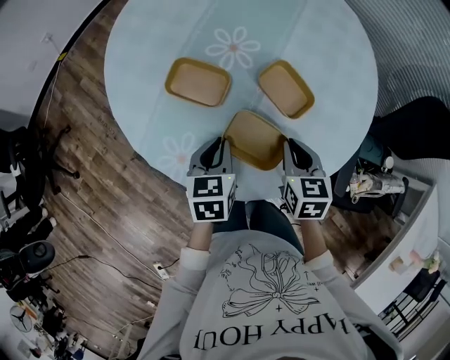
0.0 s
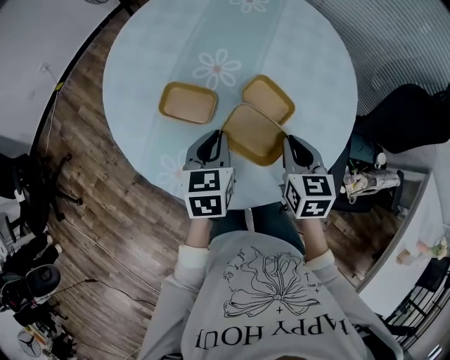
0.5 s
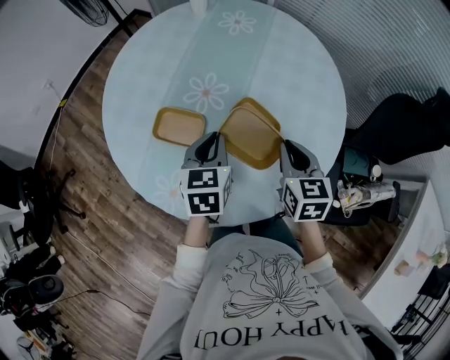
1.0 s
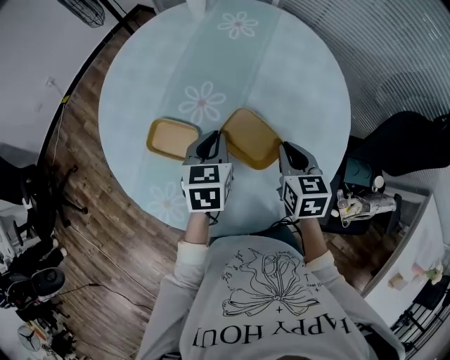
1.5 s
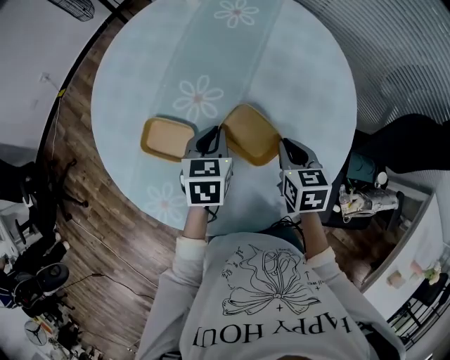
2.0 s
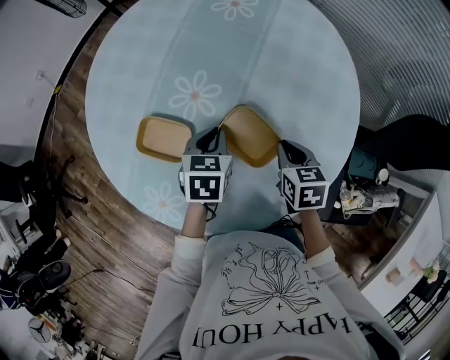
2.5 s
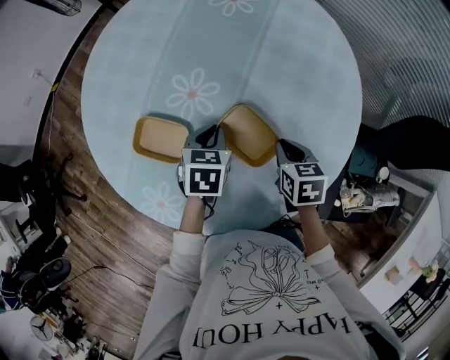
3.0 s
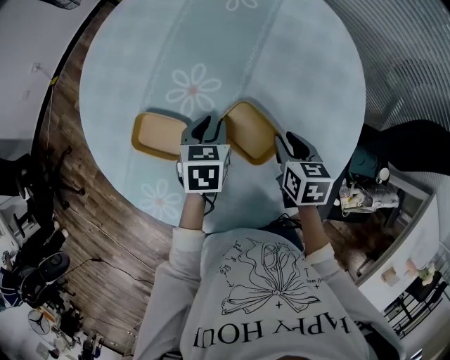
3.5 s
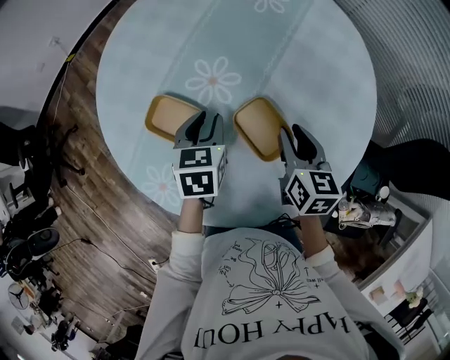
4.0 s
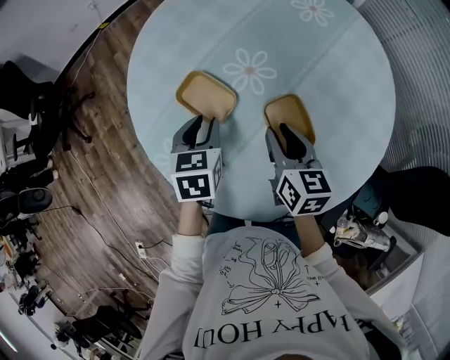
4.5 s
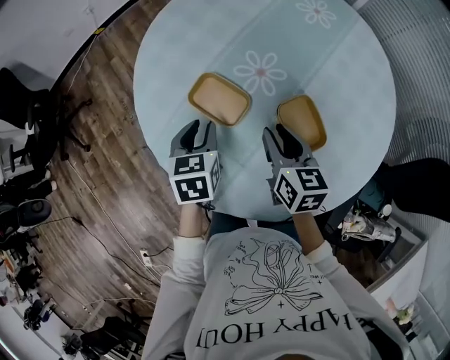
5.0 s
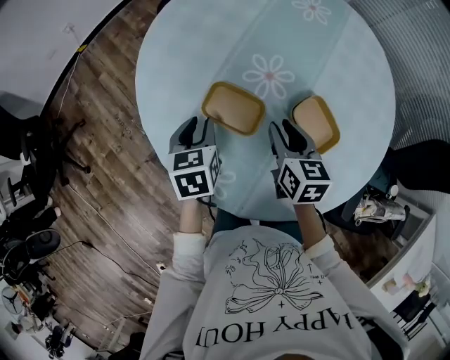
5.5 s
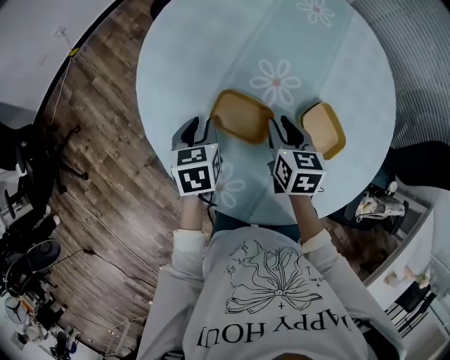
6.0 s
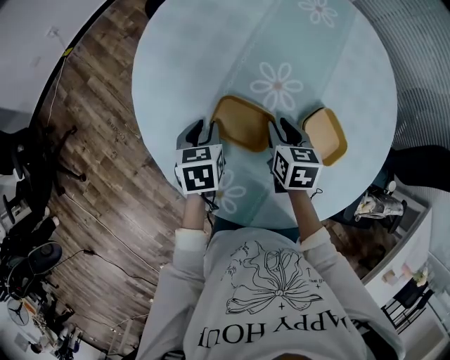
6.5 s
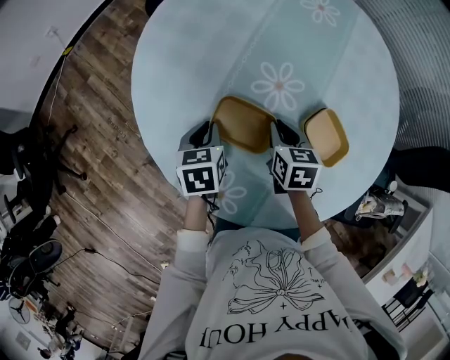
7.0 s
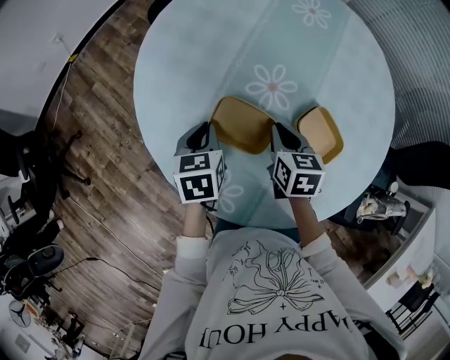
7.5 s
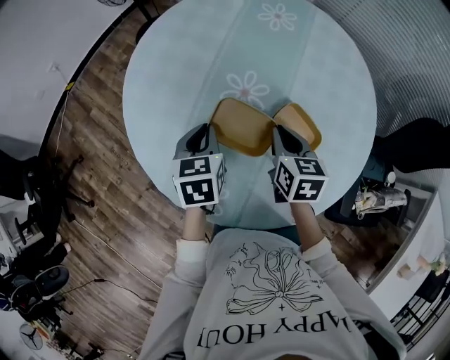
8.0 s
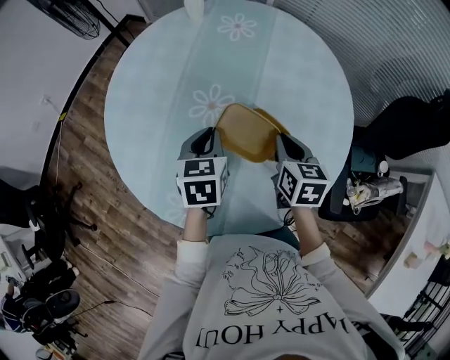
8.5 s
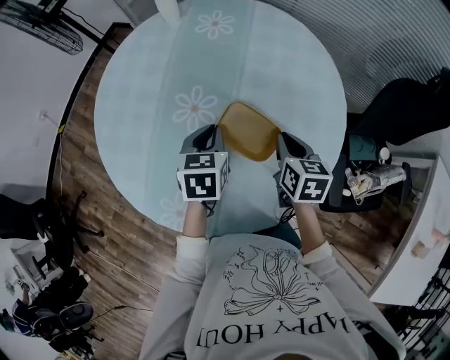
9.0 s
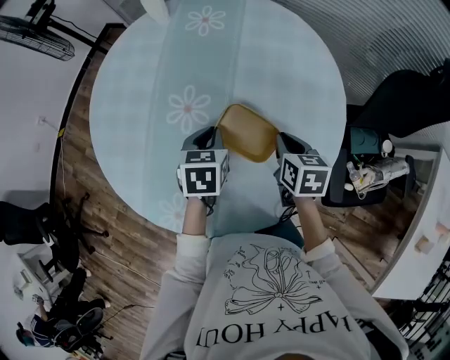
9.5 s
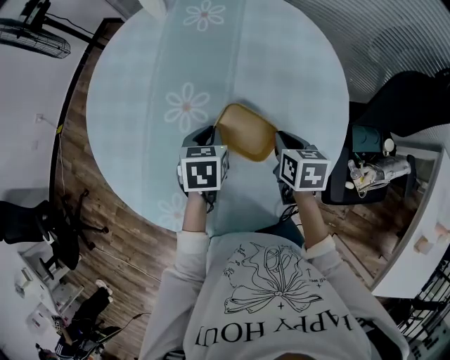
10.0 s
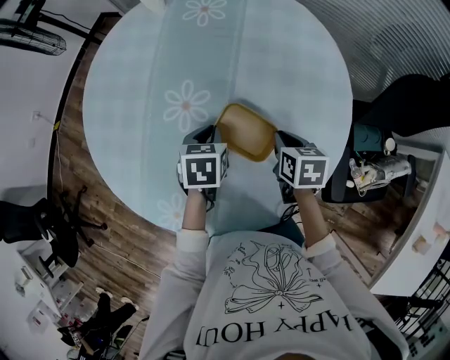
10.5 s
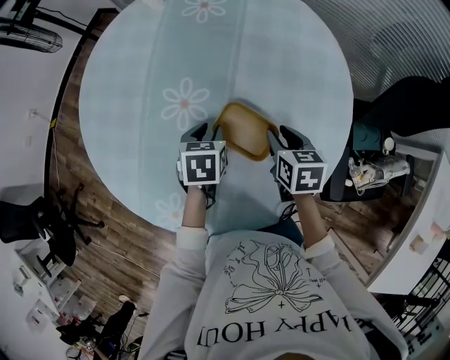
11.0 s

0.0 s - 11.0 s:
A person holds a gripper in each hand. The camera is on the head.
0.0 s - 2.0 s: Both grippers travel together forward and to the right, about 20 cm.
2.0 s - 3.5 s: The grippers both shift downward by some 5 cm. The left gripper opens. Meanwhile the right gripper opens.
3.5 s - 5.5 s: The two grippers go approximately 25 cm to the left. The left gripper swivels about 20 degrees.
5.5 s - 7.5 s: The left gripper closes its fingers, while the right gripper closes up.
7.5 s - 9.0 s: The grippers both shift to the right by some 25 cm. The left gripper turns by approximately 20 degrees.
9.0 s - 11.0 s: The right gripper heads downward, covering about 5 cm, and opens up. Meanwhile the left gripper moves downward, about 10 cm, and opens.

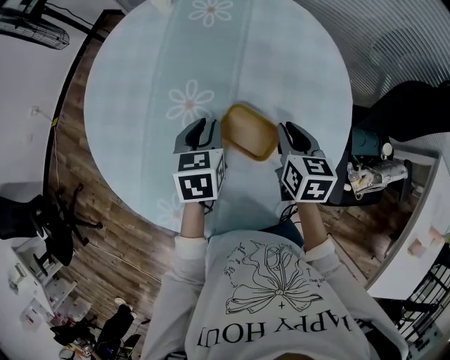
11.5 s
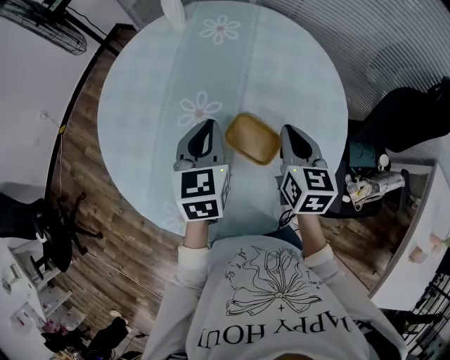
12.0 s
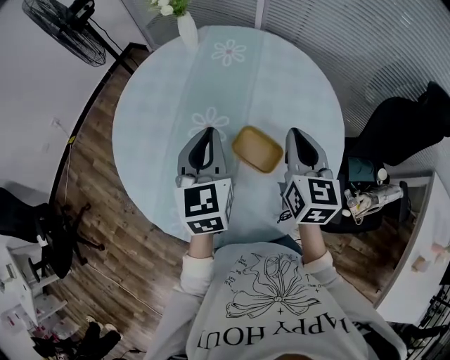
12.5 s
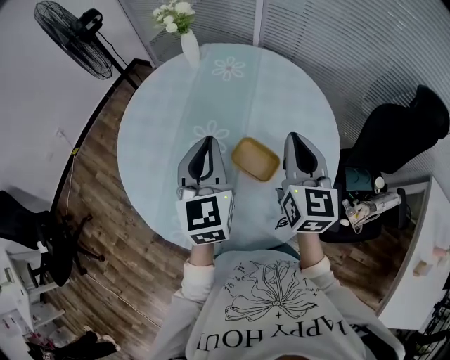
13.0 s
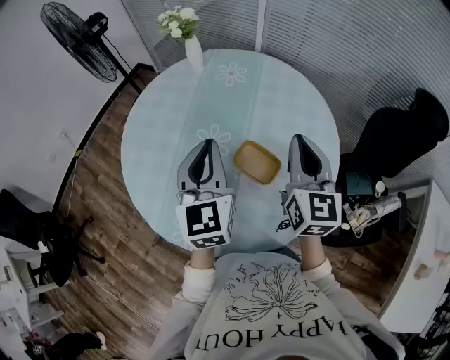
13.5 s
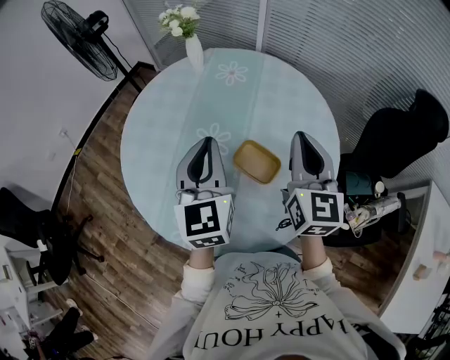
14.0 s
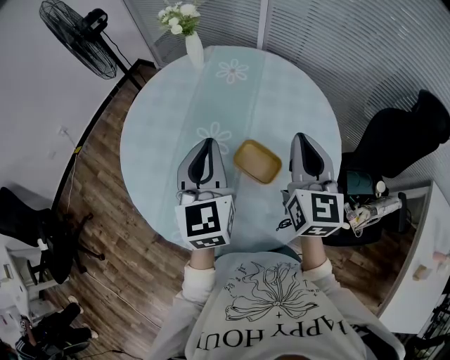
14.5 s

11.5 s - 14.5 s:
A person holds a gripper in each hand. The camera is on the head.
11.5 s - 13.0 s: Both grippers move upward, roughly 20 cm. The right gripper tilts its fingers about 30 degrees upward, while the left gripper tilts its fingers some 40 degrees upward, and closes its fingers.
13.0 s - 14.5 s: There are only small adjustments of the grippers.

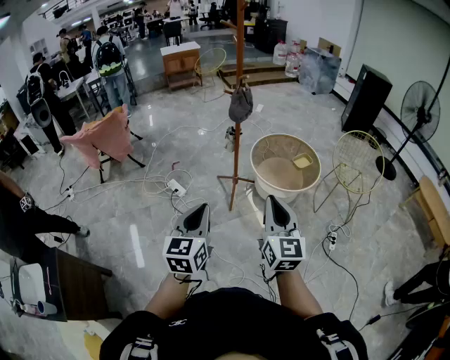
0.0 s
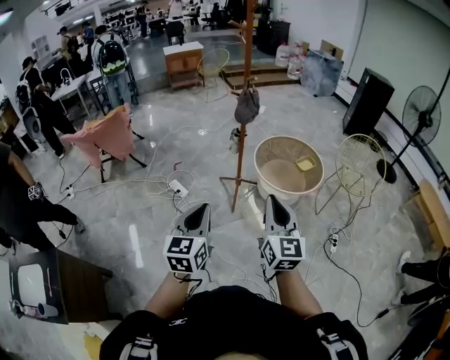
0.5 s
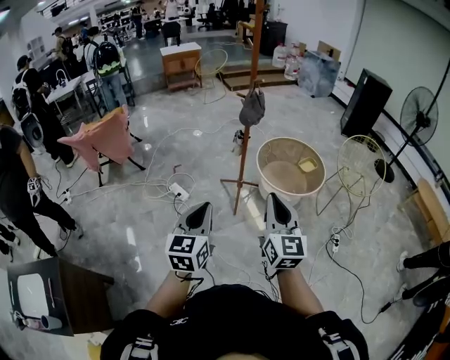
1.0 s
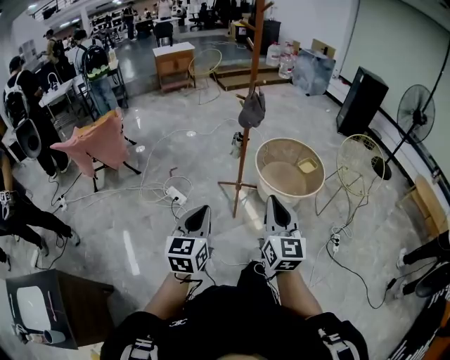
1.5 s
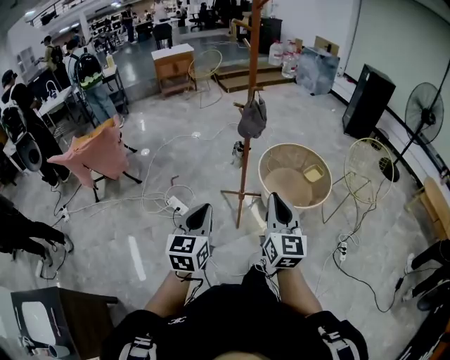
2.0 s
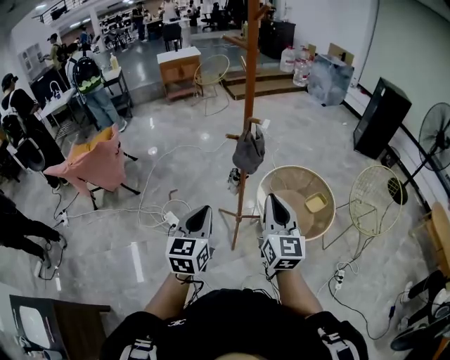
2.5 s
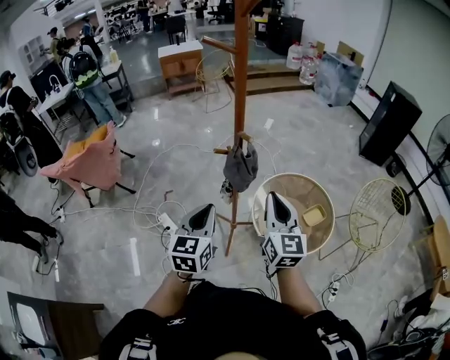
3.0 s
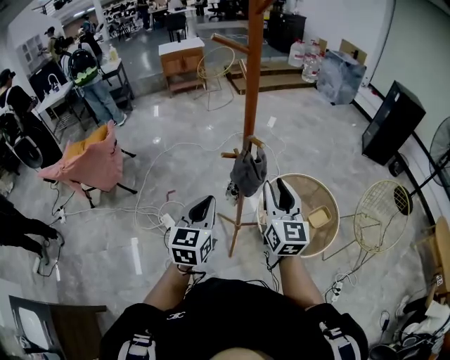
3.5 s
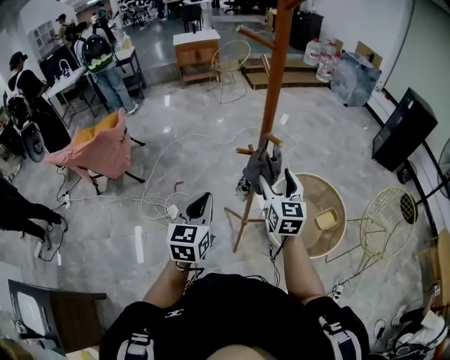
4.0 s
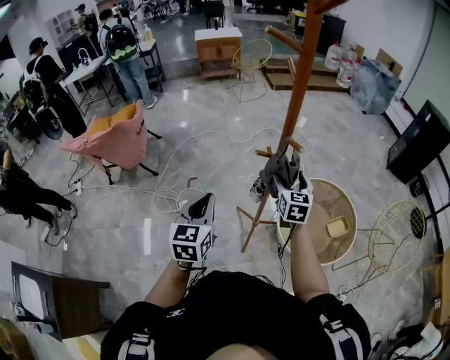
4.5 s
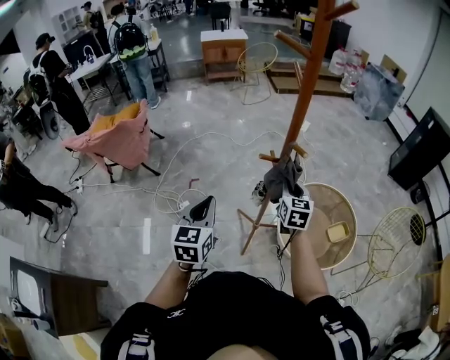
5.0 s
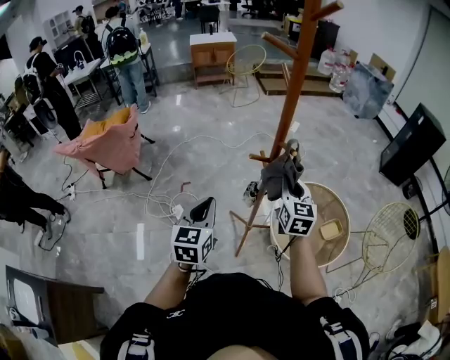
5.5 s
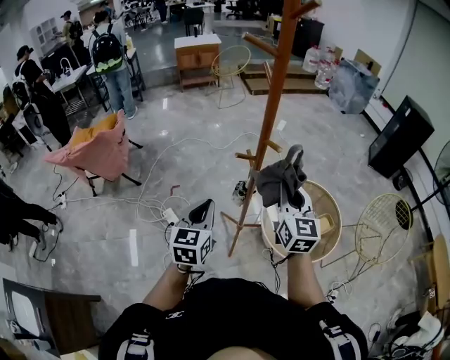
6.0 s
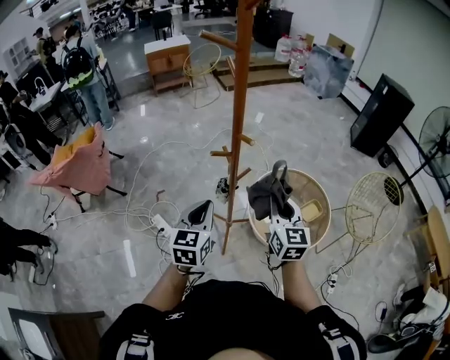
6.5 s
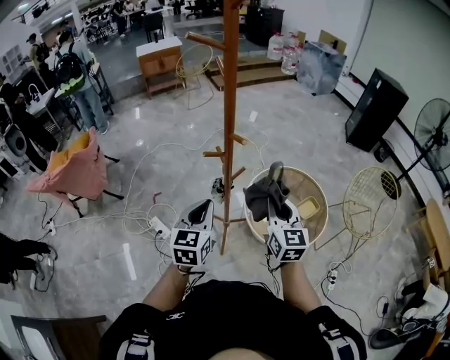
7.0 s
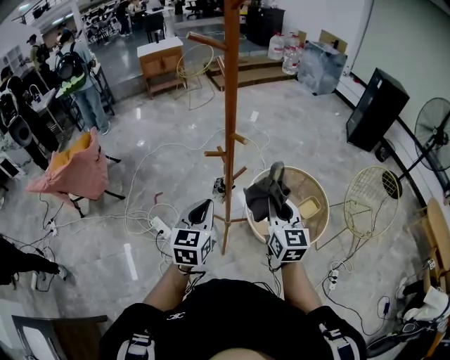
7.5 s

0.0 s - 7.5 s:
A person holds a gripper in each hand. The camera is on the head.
0.0 s - 2.0 s: Both grippers move forward and to the left, roughly 25 cm.
2.0 s - 4.0 s: Both grippers travel together forward, approximately 40 cm. The right gripper opens.
4.0 s - 5.5 s: The right gripper closes.
5.5 s - 7.5 s: The left gripper moves to the right, some 10 cm, while the right gripper heads backward and to the right, covering some 15 cm.

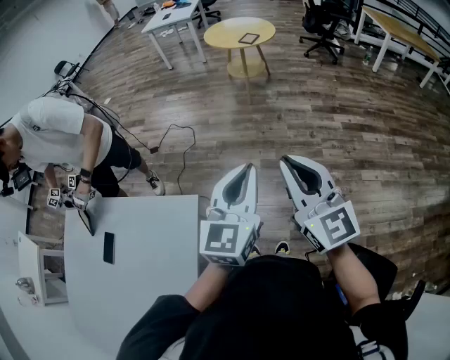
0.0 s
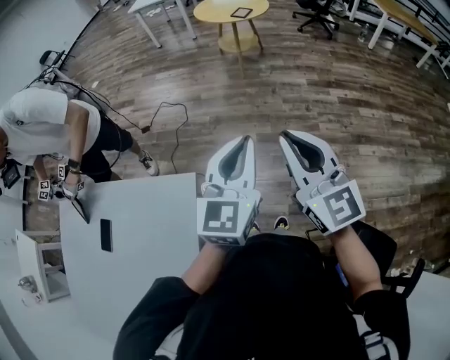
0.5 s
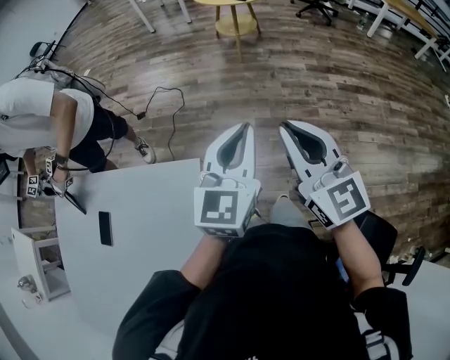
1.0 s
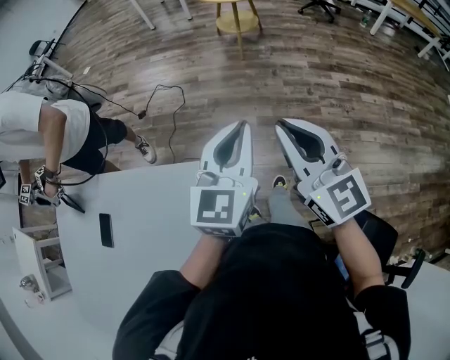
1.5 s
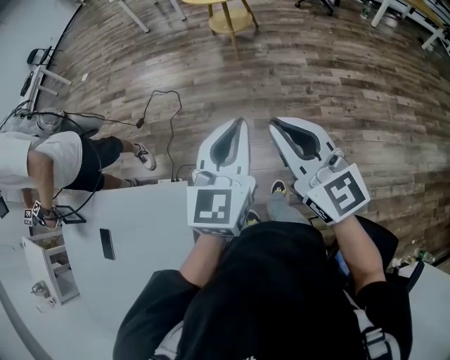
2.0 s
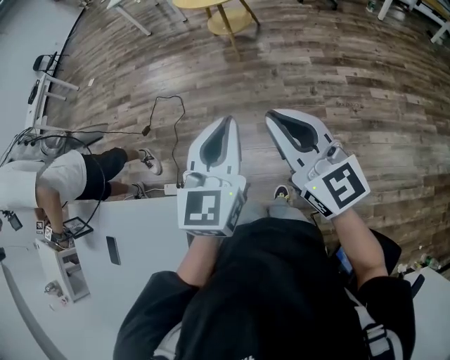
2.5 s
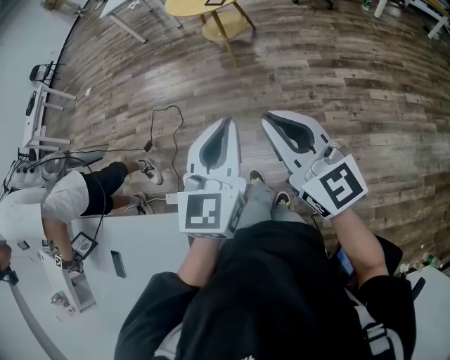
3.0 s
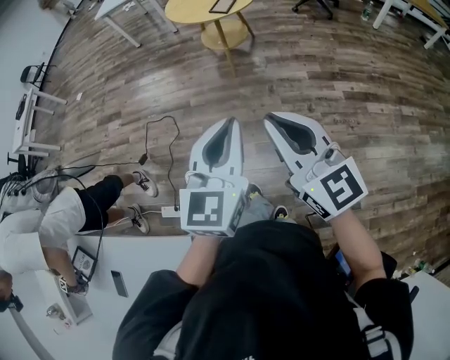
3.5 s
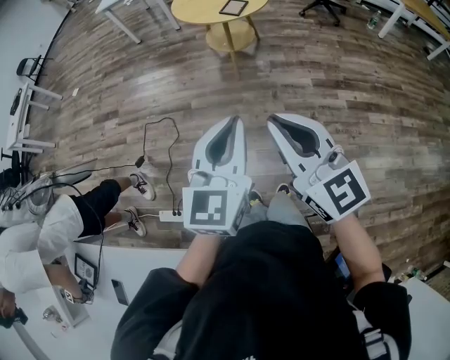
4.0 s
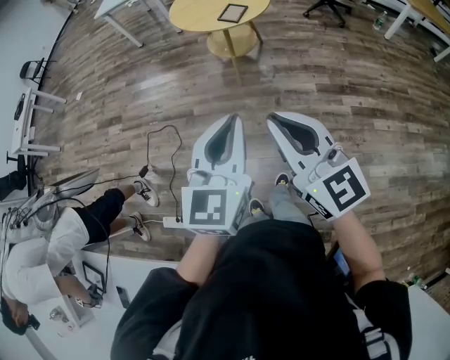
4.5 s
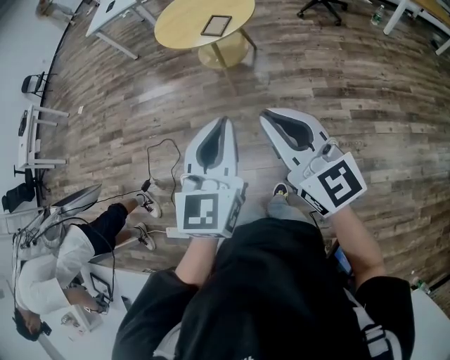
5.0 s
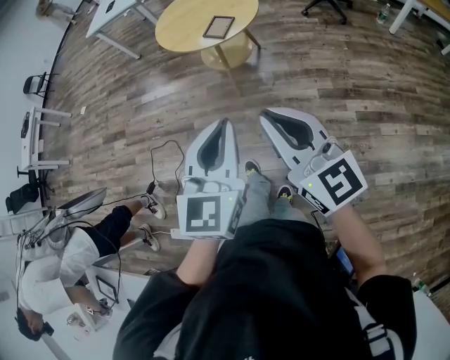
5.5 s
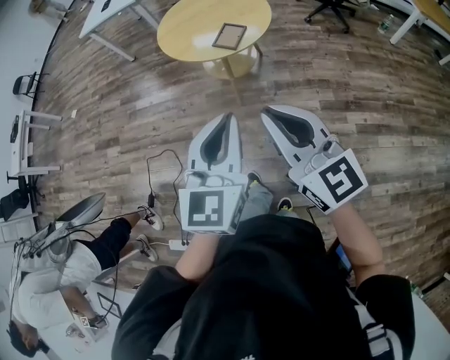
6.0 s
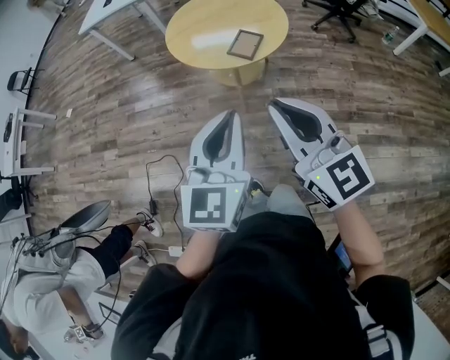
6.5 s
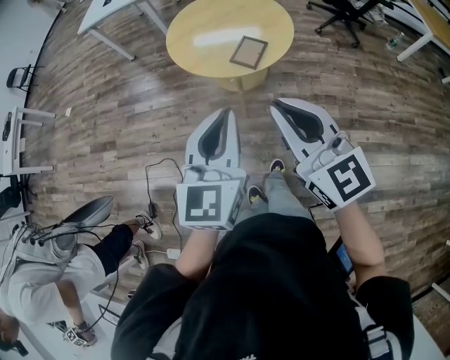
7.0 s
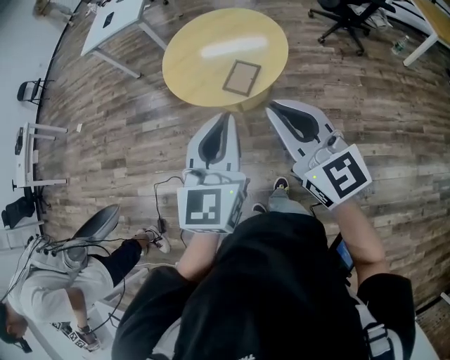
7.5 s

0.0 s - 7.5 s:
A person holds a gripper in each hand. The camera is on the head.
0.0 s - 2.0 s: Both grippers move forward, some 10 cm.
2.0 s - 4.0 s: The grippers both shift forward by some 30 cm.
4.0 s - 5.5 s: The two grippers go some 25 cm forward and to the right.
5.5 s - 7.5 s: The grippers both shift forward by approximately 35 cm.
